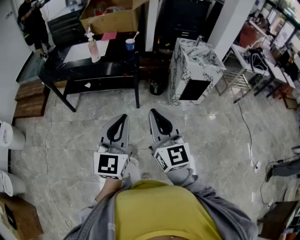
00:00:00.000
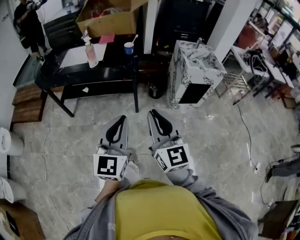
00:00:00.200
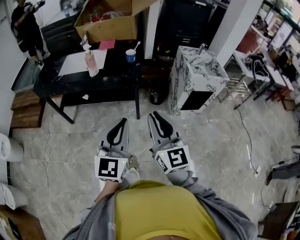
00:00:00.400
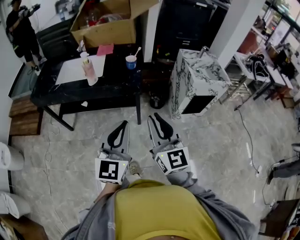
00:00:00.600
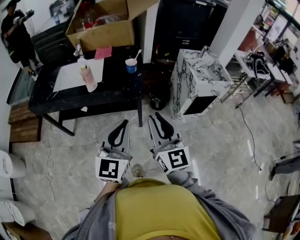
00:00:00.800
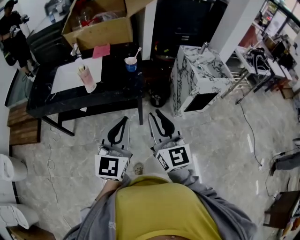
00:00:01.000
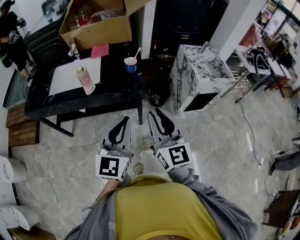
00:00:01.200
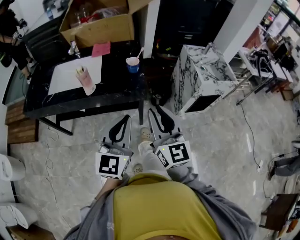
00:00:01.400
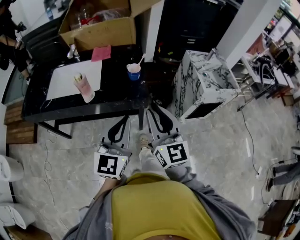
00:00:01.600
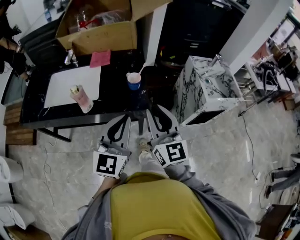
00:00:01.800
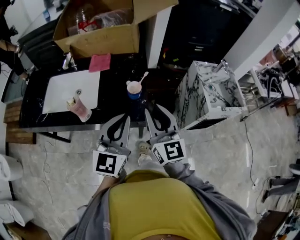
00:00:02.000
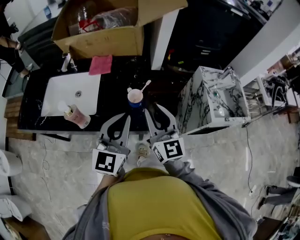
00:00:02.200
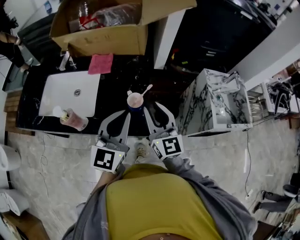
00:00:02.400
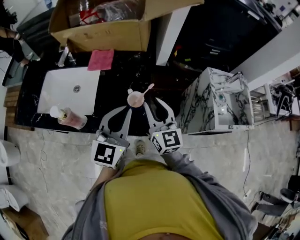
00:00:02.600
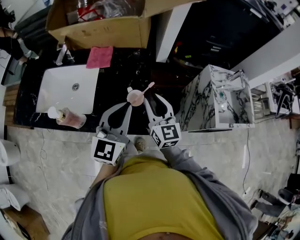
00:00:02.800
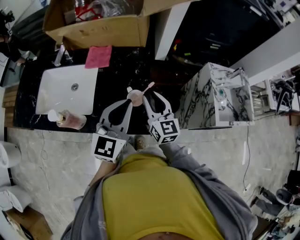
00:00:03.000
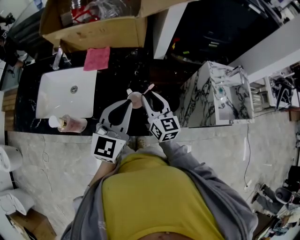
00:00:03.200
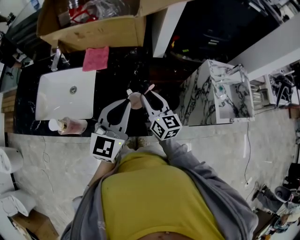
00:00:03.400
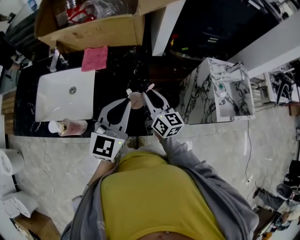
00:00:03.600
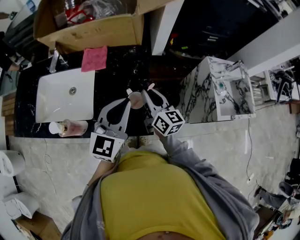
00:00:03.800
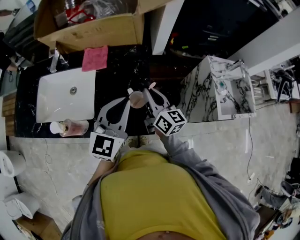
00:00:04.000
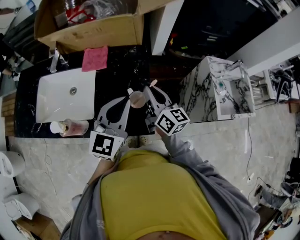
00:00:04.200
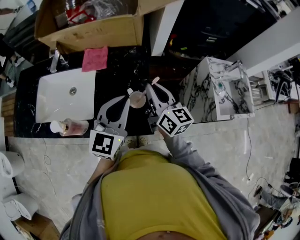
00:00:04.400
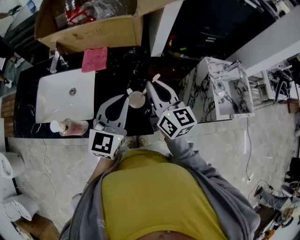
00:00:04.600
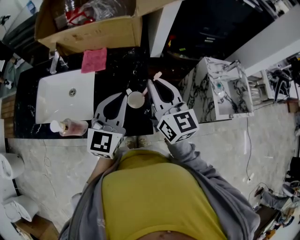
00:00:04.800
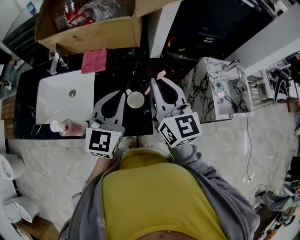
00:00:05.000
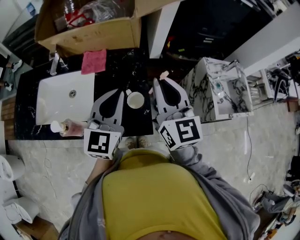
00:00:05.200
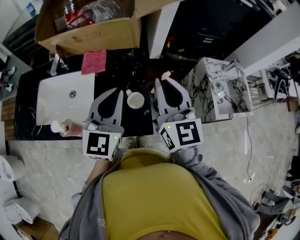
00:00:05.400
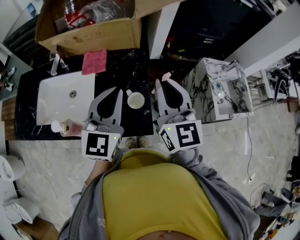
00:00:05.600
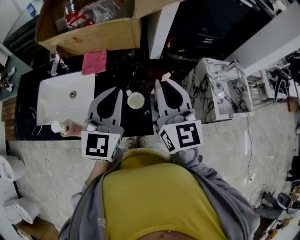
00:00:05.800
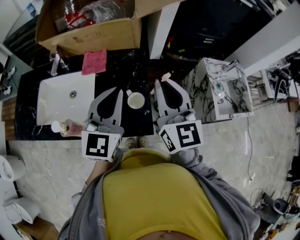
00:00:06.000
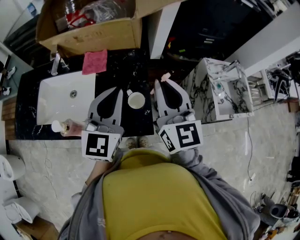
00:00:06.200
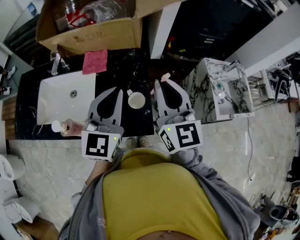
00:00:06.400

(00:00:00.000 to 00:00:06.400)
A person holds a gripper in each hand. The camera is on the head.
00:00:00.000 - 00:00:01.600: The grippers both shift forward by about 40 cm. The right gripper opens.
00:00:01.600 - 00:00:03.200: The right gripper shifts roughly 40 cm forward and downward, and rotates approximately 20 degrees. Meanwhile the left gripper travels forward by some 30 cm.
00:00:03.200 - 00:00:04.800: The right gripper goes approximately 15 cm upward, and closes up.
00:00:04.800 - 00:00:06.400: The two grippers go approximately 5 cm upward.

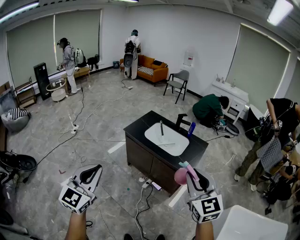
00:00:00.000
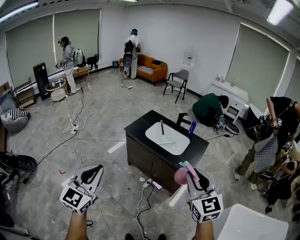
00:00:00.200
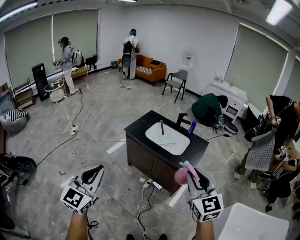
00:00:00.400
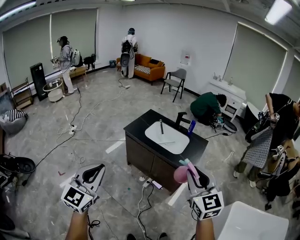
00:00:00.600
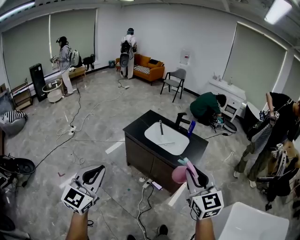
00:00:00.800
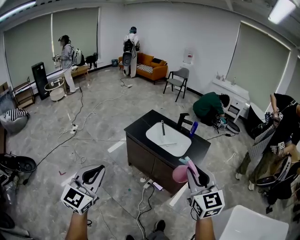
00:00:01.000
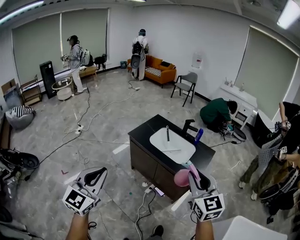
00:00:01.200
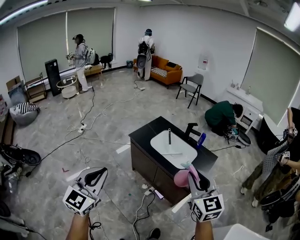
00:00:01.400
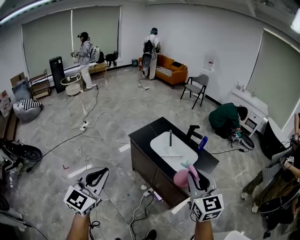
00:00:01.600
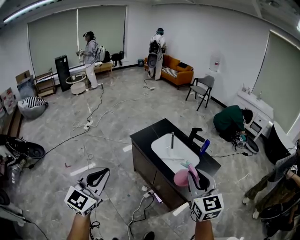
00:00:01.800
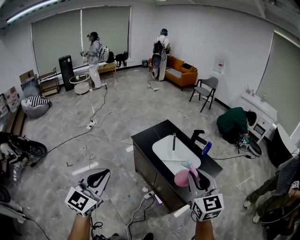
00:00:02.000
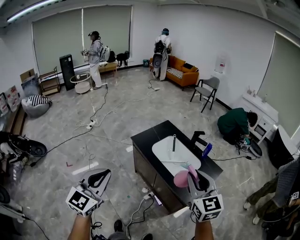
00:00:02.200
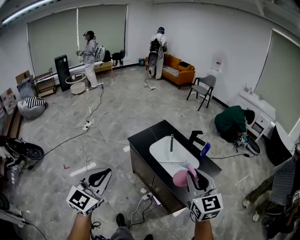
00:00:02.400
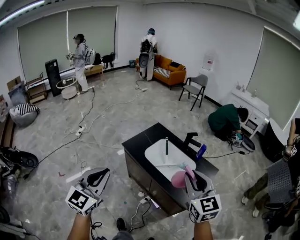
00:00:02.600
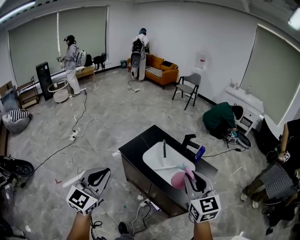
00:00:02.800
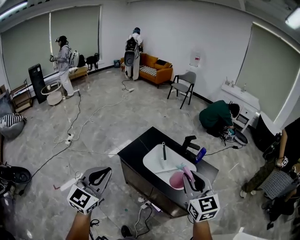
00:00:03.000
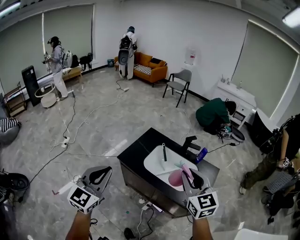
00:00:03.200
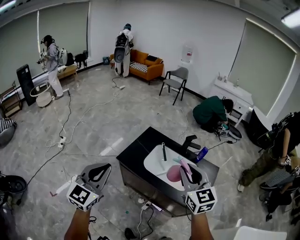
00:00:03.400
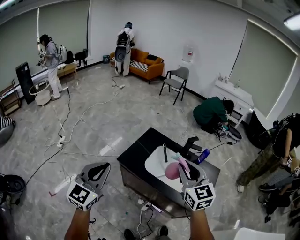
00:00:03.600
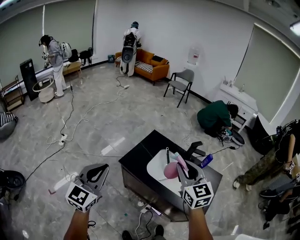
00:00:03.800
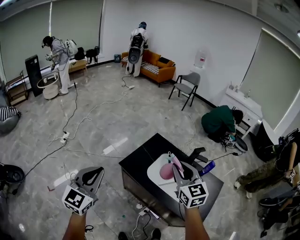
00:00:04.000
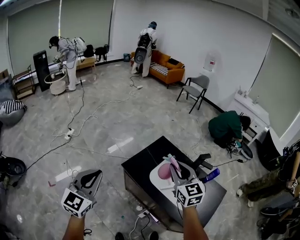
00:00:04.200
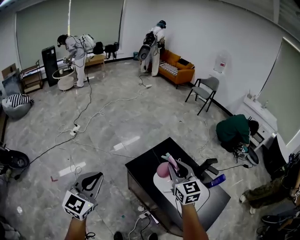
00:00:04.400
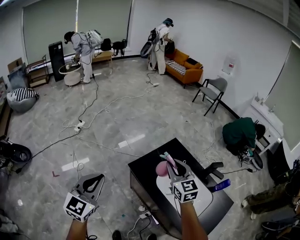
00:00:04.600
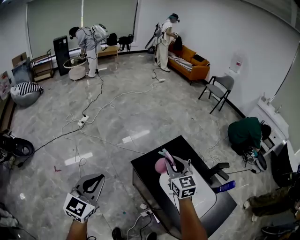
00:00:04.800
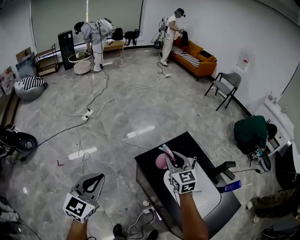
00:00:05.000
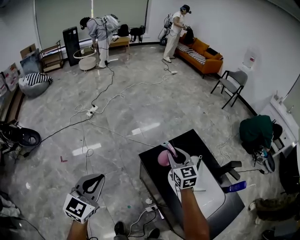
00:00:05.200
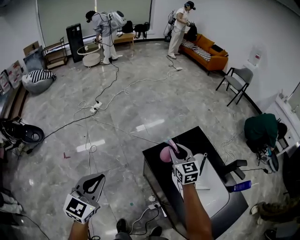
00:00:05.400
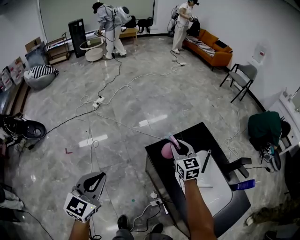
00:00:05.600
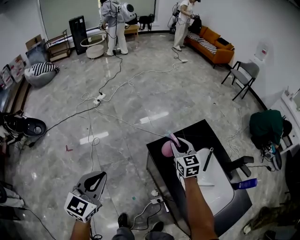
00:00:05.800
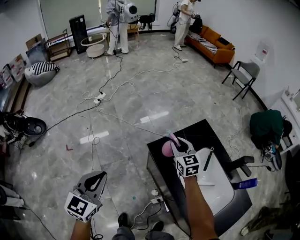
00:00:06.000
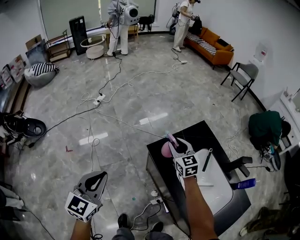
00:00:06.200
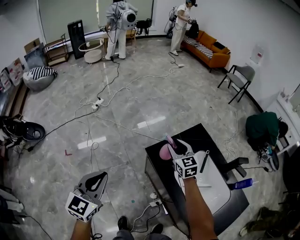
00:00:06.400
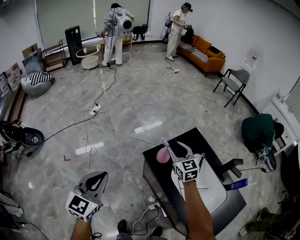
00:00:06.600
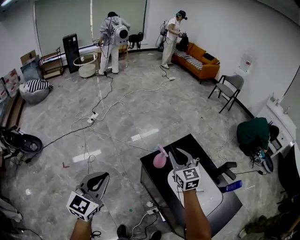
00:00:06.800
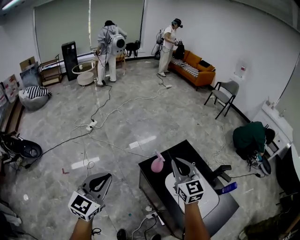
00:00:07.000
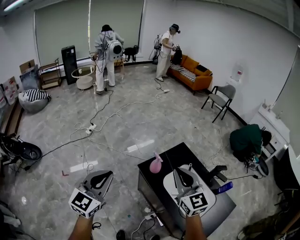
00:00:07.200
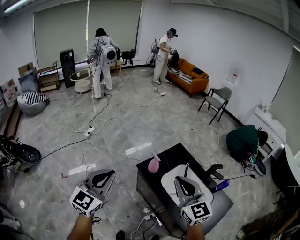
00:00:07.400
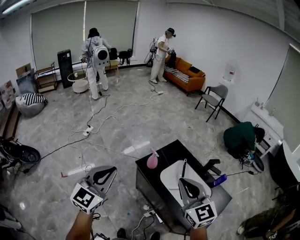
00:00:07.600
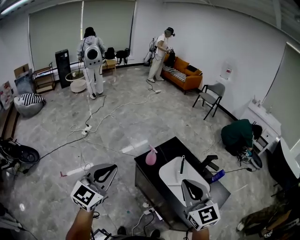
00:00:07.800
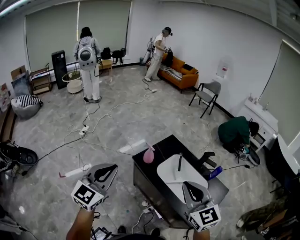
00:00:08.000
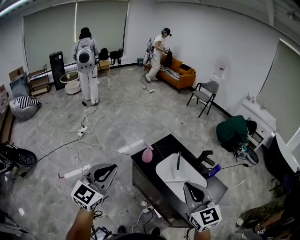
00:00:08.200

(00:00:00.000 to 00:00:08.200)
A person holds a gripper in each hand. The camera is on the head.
00:00:00.000 - 00:00:01.600: The right gripper goes approximately 20 cm forward. Meanwhile the left gripper moves forward and to the right, approximately 15 cm.
00:00:01.600 - 00:00:03.200: Both grippers travel together forward, approximately 30 cm.
00:00:03.200 - 00:00:05.000: The left gripper changes place by some 25 cm, and rotates approximately 30 degrees, while the right gripper changes place by approximately 50 cm, and changes its angle by some 30 degrees.
00:00:05.000 - 00:00:06.600: The left gripper travels downward and back again, approximately 10 cm each way, while the right gripper moves approximately 10 cm downward and comes back.
00:00:06.600 - 00:00:08.200: The right gripper heads backward and upward, covering approximately 50 cm, and closes its fingers. The left gripper travels upward and backward by roughly 25 cm, and swivels roughly 20 degrees.

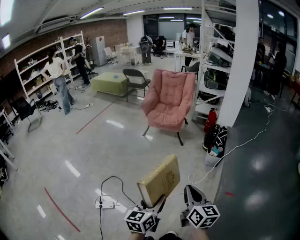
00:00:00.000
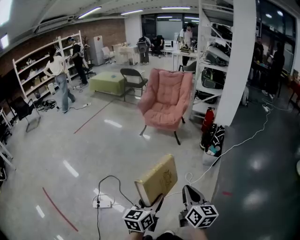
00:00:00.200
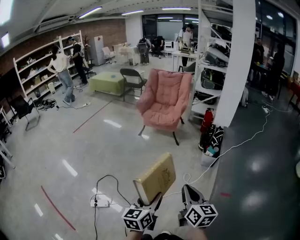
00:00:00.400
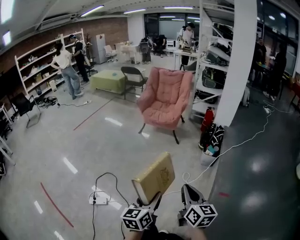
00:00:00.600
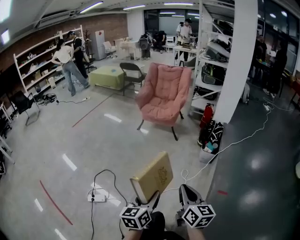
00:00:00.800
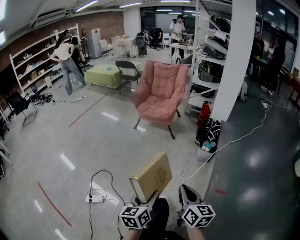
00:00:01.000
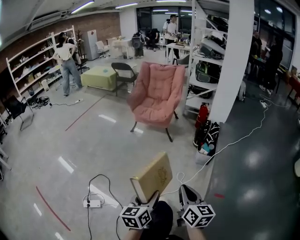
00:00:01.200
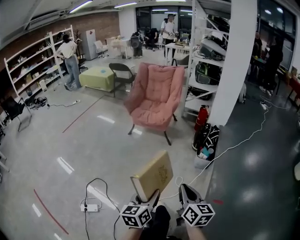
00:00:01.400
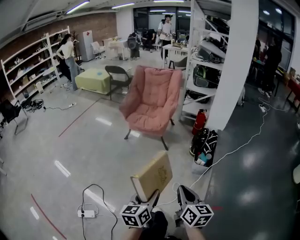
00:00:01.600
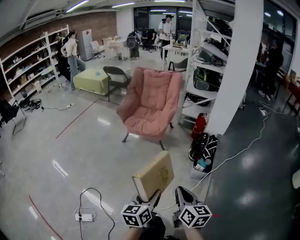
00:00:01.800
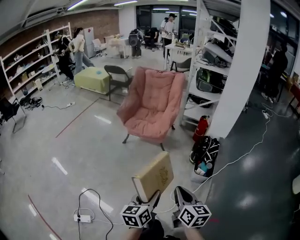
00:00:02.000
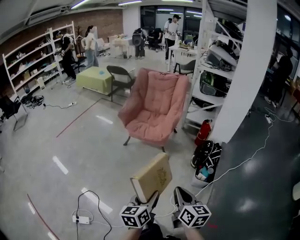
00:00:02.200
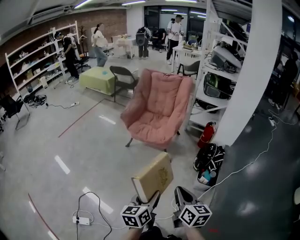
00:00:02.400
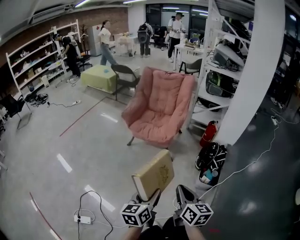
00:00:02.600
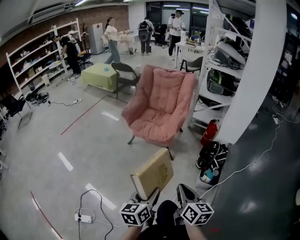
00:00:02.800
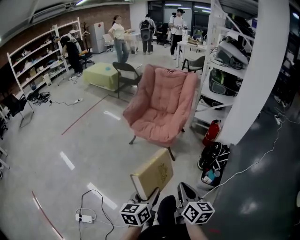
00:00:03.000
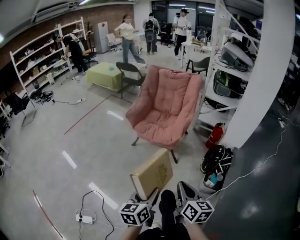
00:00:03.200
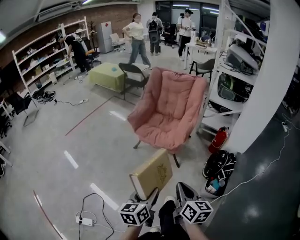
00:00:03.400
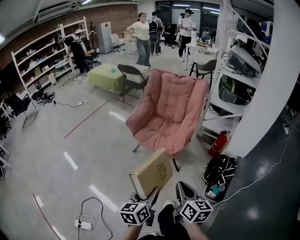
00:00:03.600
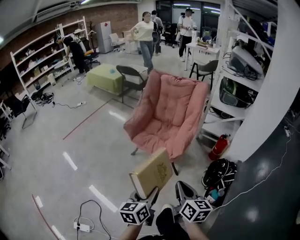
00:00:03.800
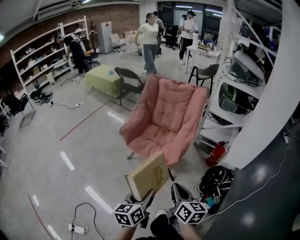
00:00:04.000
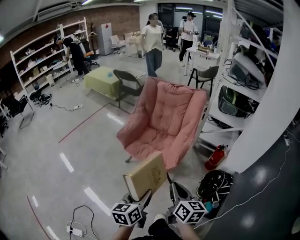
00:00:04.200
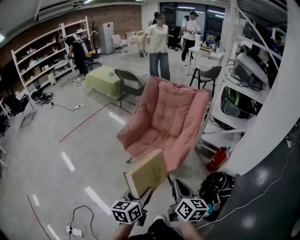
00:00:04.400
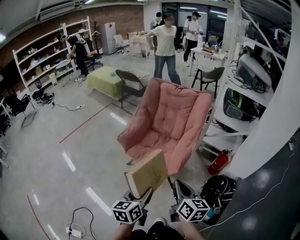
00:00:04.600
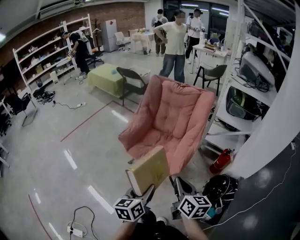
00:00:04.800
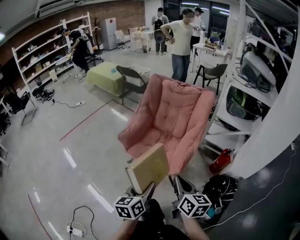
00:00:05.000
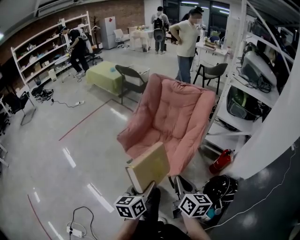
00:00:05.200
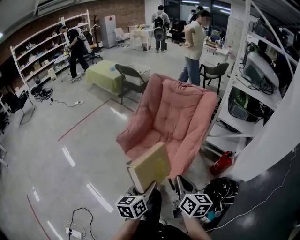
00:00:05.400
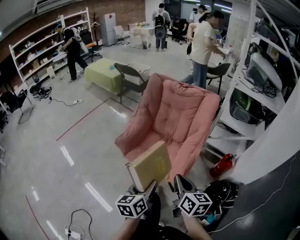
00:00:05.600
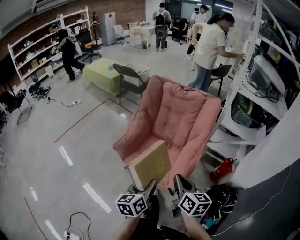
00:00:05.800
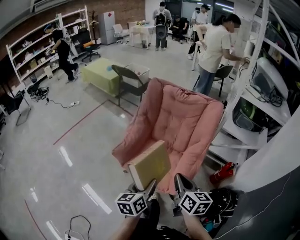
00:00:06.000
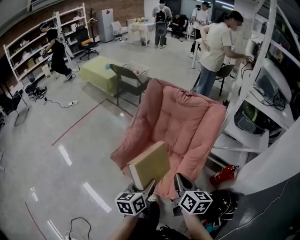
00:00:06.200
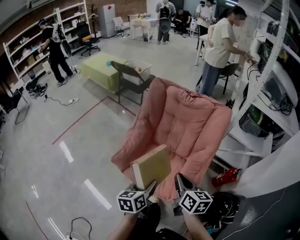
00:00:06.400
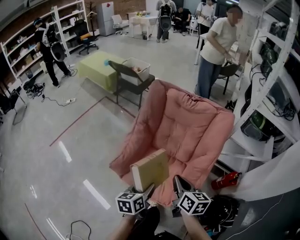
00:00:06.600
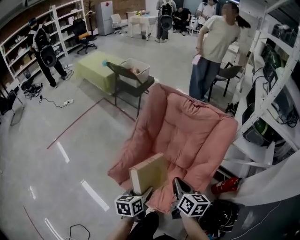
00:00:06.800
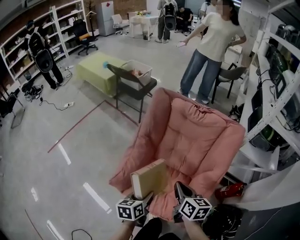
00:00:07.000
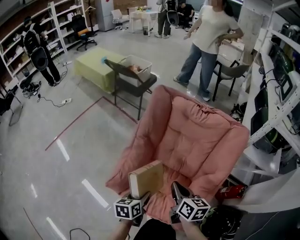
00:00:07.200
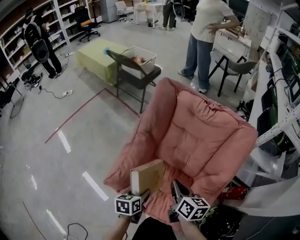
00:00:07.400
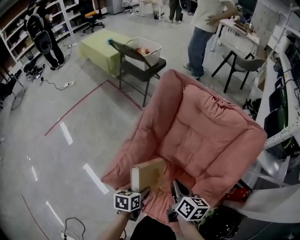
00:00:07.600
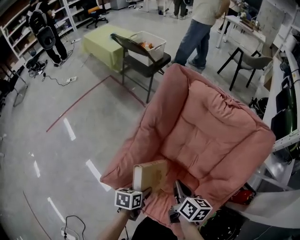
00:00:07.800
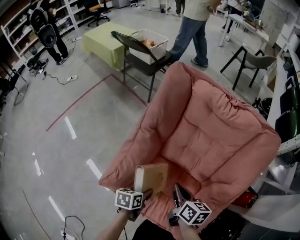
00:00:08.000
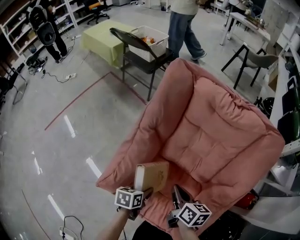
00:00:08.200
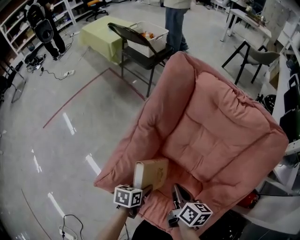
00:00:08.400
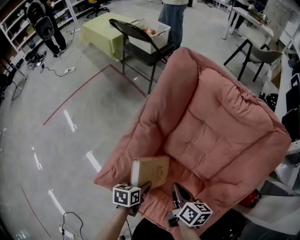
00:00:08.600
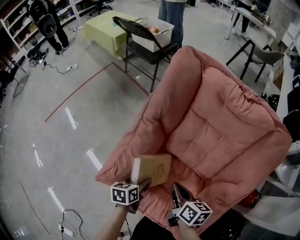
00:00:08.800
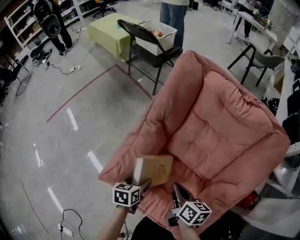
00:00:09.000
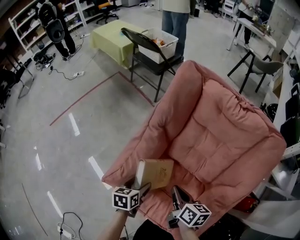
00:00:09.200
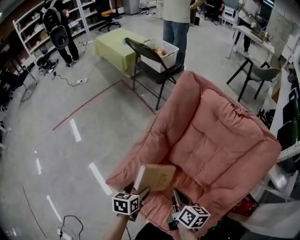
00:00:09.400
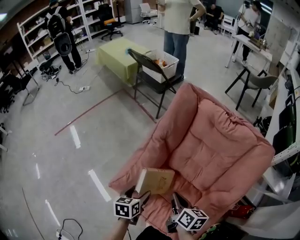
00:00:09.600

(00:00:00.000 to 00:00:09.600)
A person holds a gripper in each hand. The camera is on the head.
00:00:00.000 - 00:00:01.600: Both grippers travel together forward and to the right, roughly 25 cm.
00:00:01.600 - 00:00:03.200: Both grippers travel together forward, roughly 25 cm.
00:00:03.200 - 00:00:04.800: The grippers both shift forward by roughly 35 cm.
00:00:04.800 - 00:00:06.400: The grippers both shift forward by some 30 cm.
00:00:06.400 - 00:00:08.000: The left gripper travels downward and forward by about 35 cm, and changes its angle by about 30 degrees; the right gripper heads forward and downward, covering roughly 30 cm.
00:00:08.000 - 00:00:09.600: The right gripper changes place by roughly 5 cm. The left gripper is displaced upward and to the left by about 10 cm, and turns by approximately 20 degrees.
